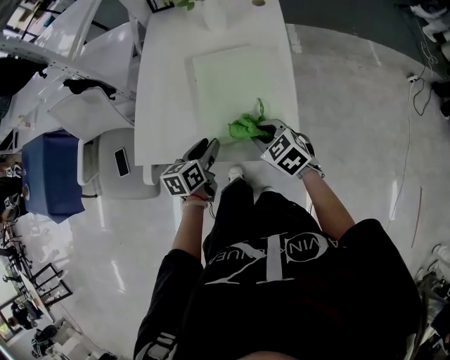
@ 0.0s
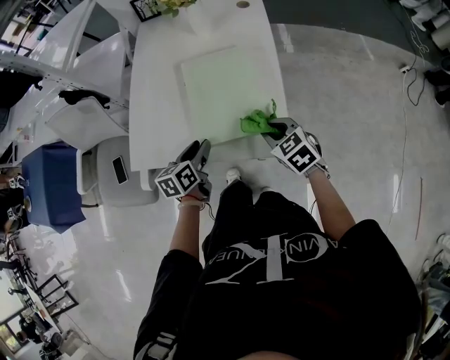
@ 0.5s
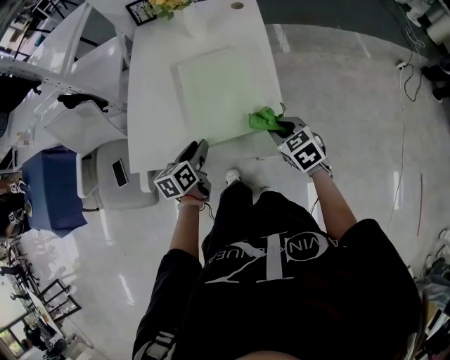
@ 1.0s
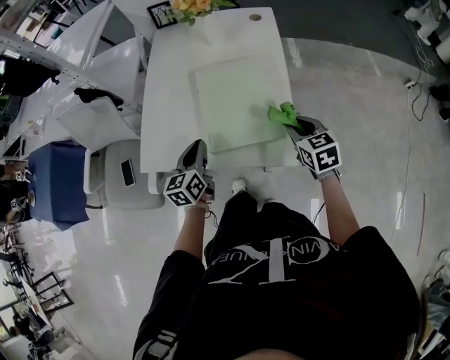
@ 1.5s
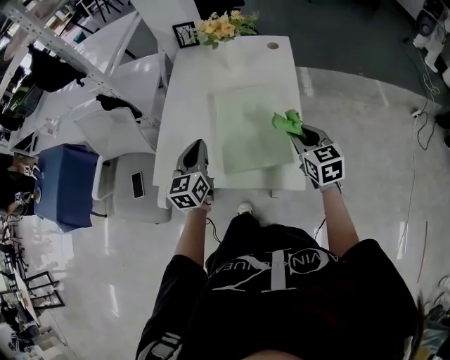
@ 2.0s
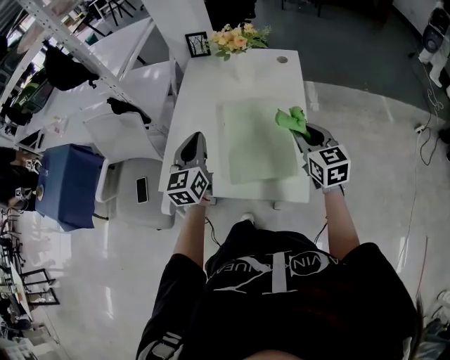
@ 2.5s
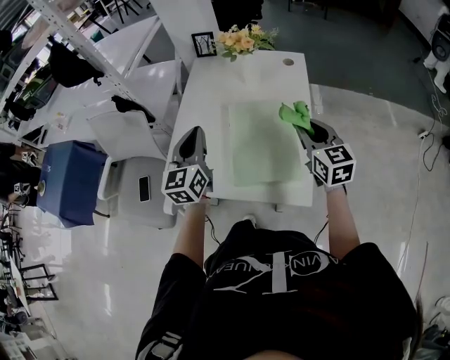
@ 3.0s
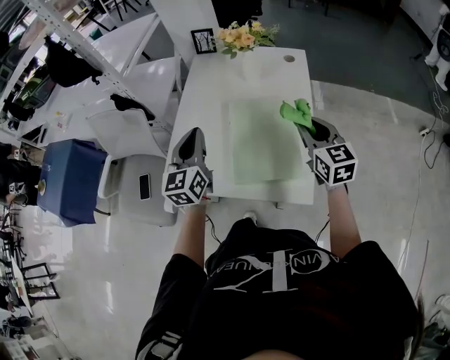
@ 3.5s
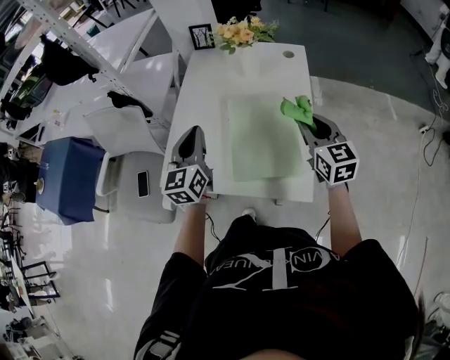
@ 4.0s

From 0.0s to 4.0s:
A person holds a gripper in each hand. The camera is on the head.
From 0.0s to 2.0s: The left gripper moves upward and forward, approximately 15 cm, rotates some 30 degrees, and closes its fingers. The right gripper is displaced to the right, upward and forward by approximately 15 cm, and swivels some 30 degrees.
From 2.0s to 4.0s: The grippers both shift upward by about 5 cm.

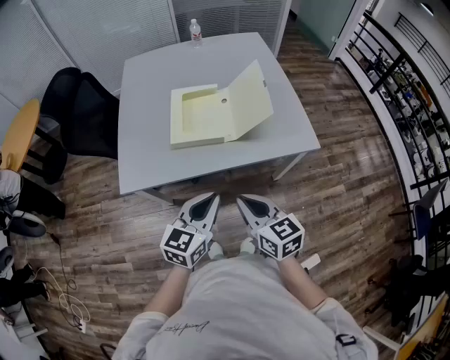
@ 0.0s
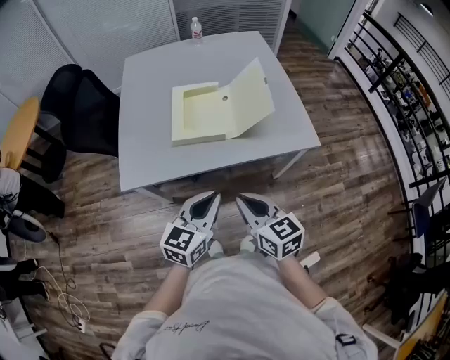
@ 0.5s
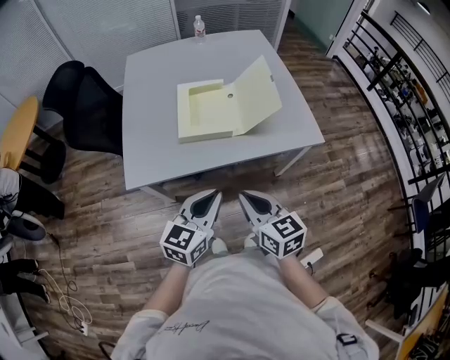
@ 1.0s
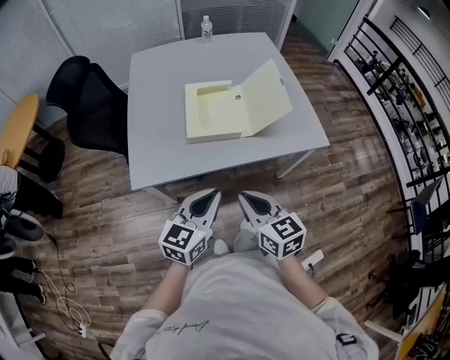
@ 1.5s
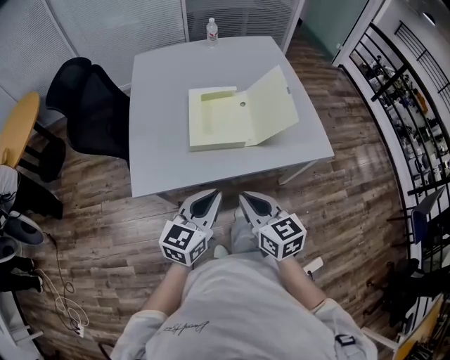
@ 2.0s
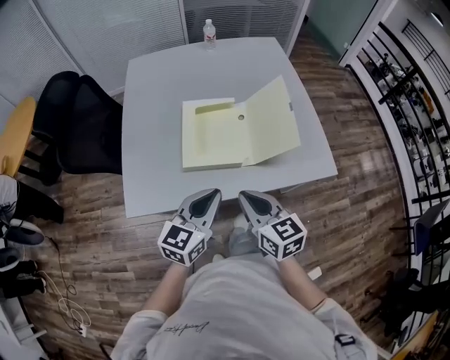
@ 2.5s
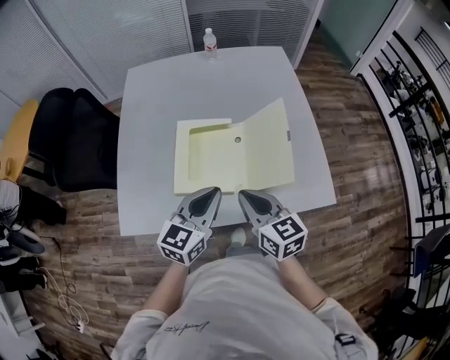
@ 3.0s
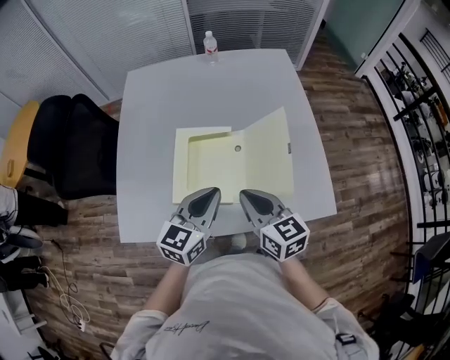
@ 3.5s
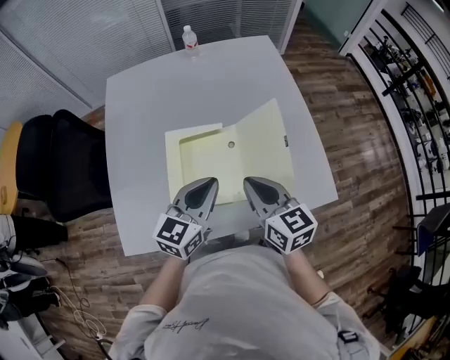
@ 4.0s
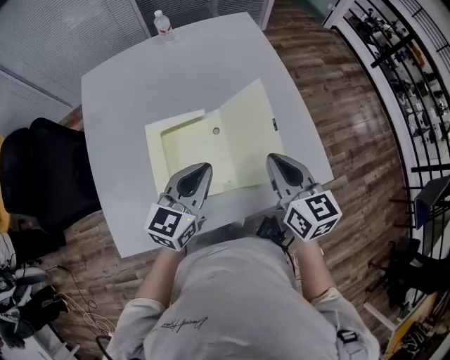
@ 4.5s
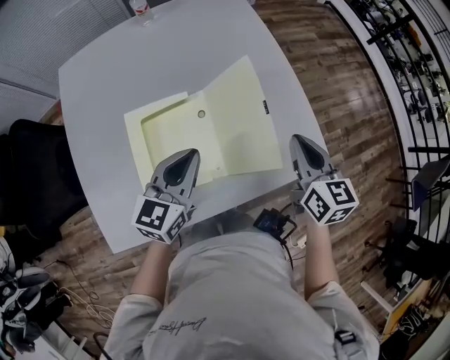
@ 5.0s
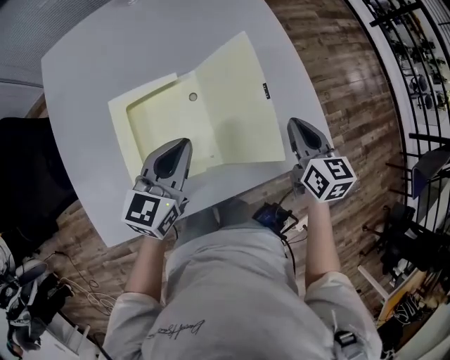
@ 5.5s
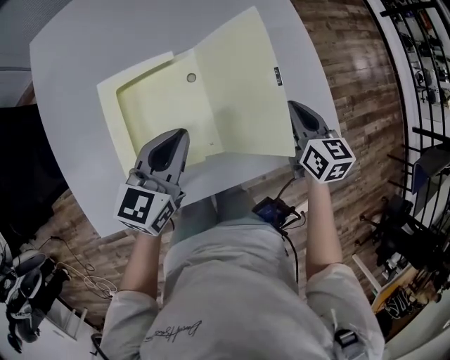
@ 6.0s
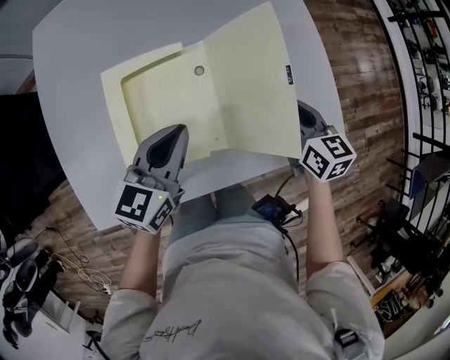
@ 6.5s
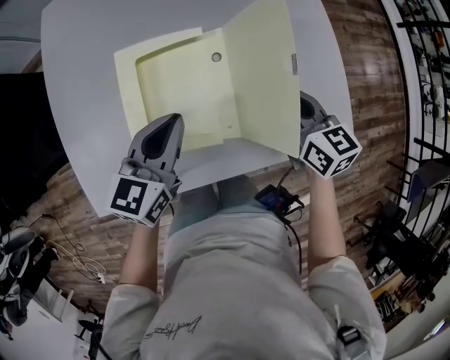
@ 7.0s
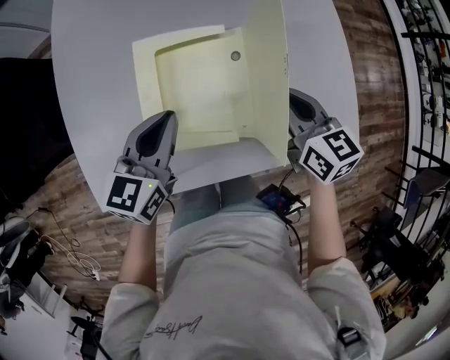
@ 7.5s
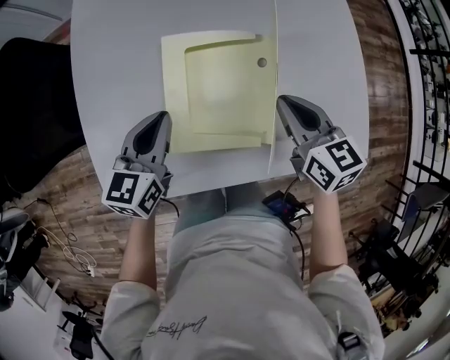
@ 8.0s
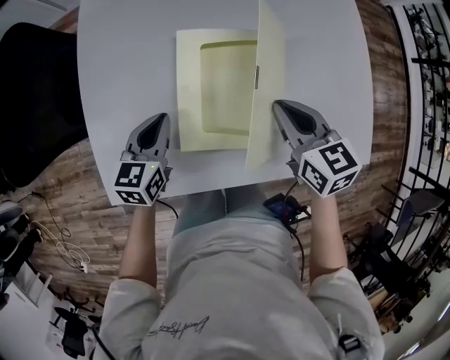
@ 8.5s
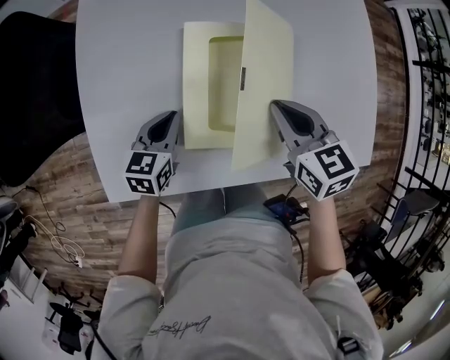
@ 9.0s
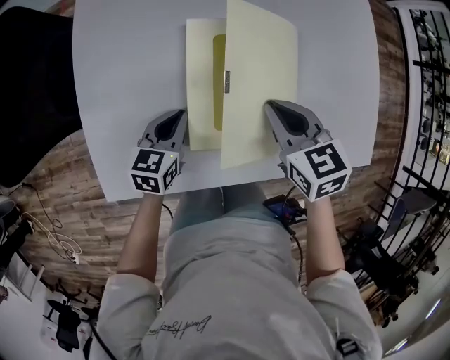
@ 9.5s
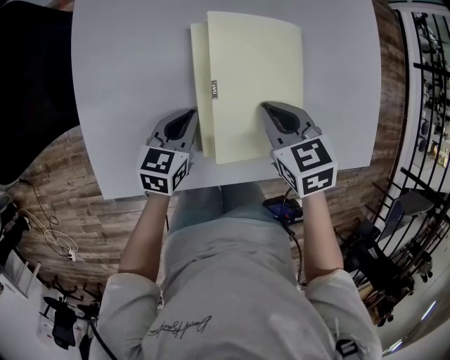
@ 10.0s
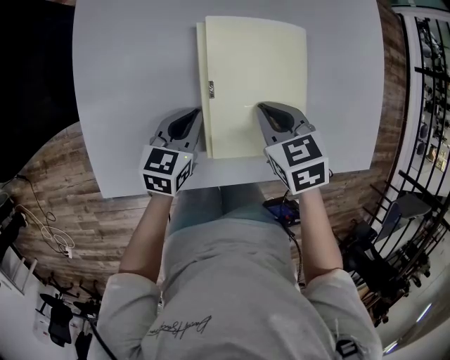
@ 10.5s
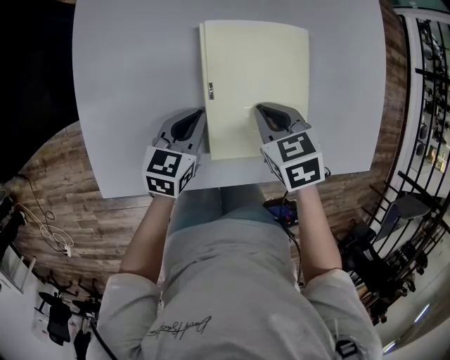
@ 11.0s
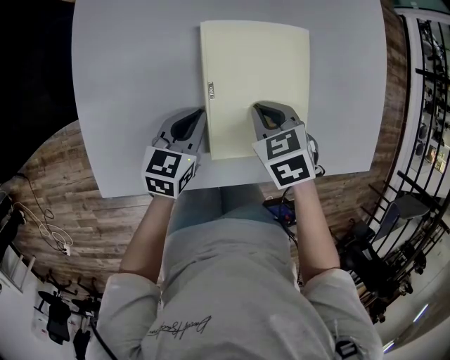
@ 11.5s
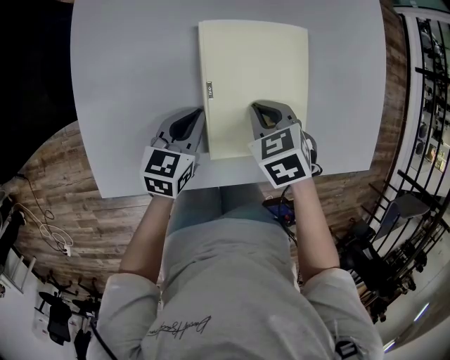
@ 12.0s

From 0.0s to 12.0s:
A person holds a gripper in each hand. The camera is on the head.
From 0.0s to 2.0s: The two grippers go approximately 10 cm to the left.
From 2.0s to 4.0s: Both grippers move forward, approximately 25 cm.
From 4.0s to 6.0s: The right gripper heads to the right, downward and forward, covering about 25 cm, and swivels some 20 degrees. The left gripper moves downward, roughly 10 cm.
From 6.0s to 8.0s: Both grippers move to the left, roughly 20 cm. The right gripper rotates about 20 degrees.
From 8.0s to 10.0s: The right gripper shifts about 10 cm to the left and downward, and swivels about 30 degrees. The left gripper goes some 15 cm downward.
From 10.0s to 12.0s: The grippers stay close to where they were, moving slightly.

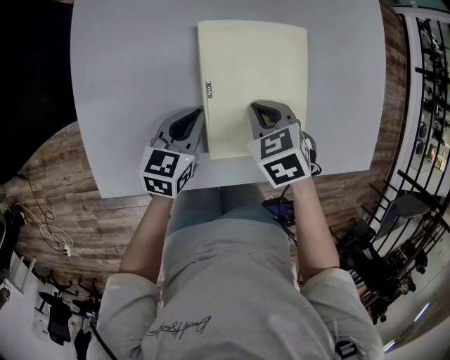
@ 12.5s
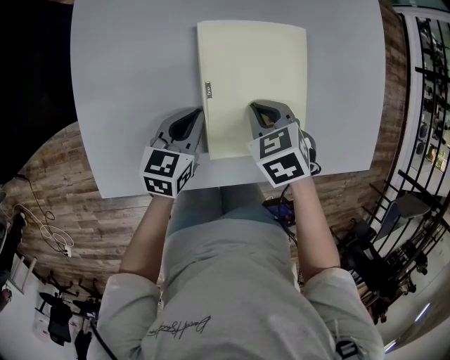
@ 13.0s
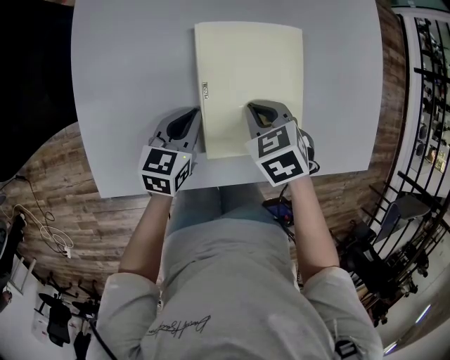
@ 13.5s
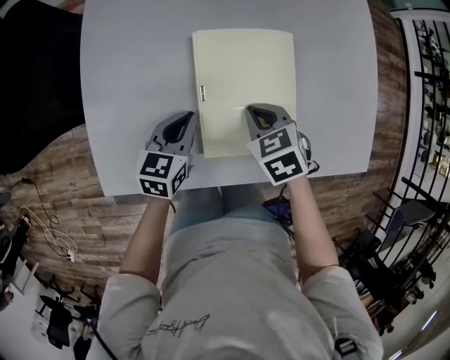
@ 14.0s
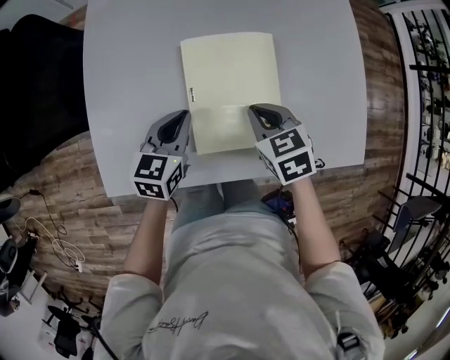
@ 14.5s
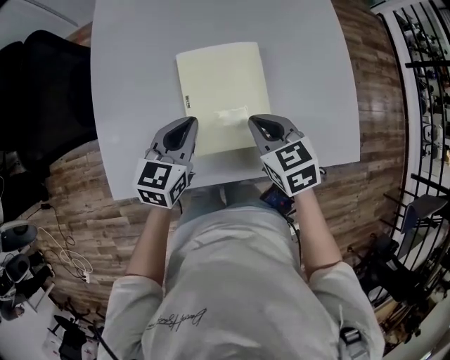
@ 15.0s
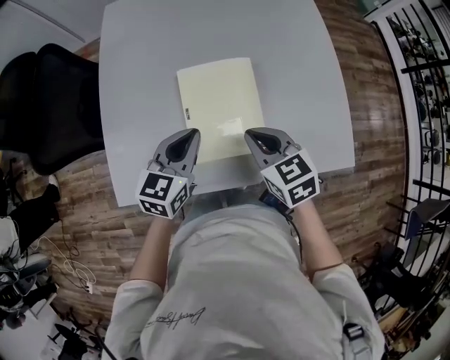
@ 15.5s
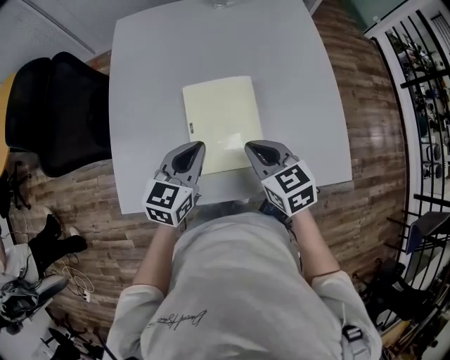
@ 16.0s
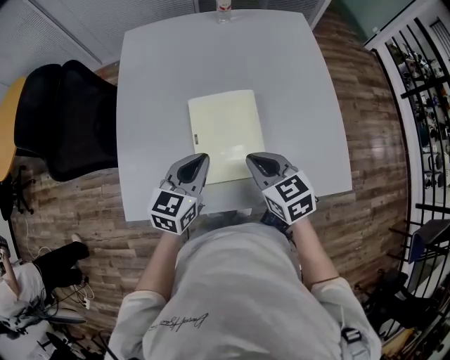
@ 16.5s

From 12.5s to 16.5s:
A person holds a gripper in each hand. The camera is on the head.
From 12.5s to 14.5s: The left gripper travels upward by some 5 cm.
From 14.5s to 16.5s: The right gripper travels upward by some 10 cm, while the left gripper is displaced upward and to the right by about 10 cm.

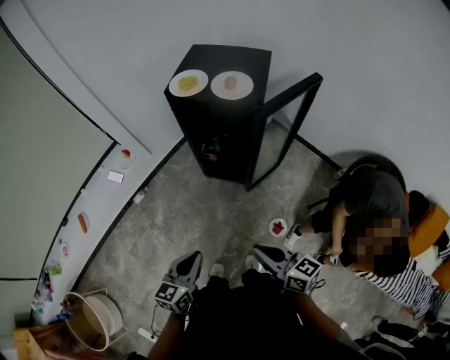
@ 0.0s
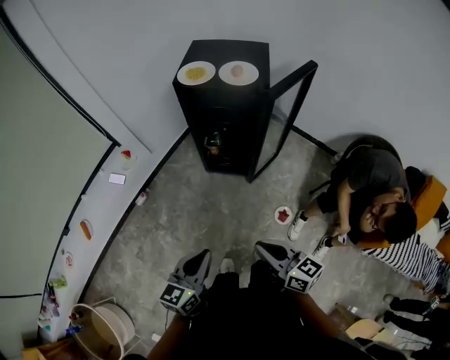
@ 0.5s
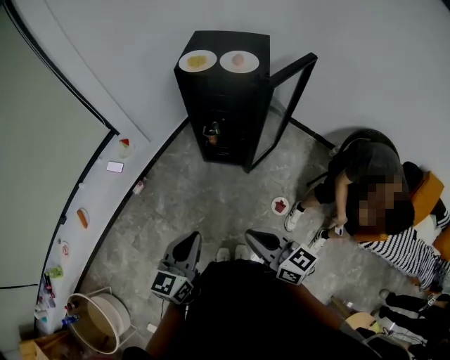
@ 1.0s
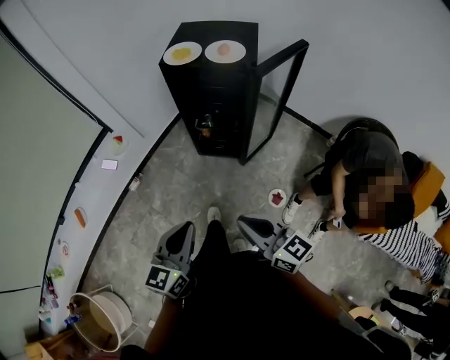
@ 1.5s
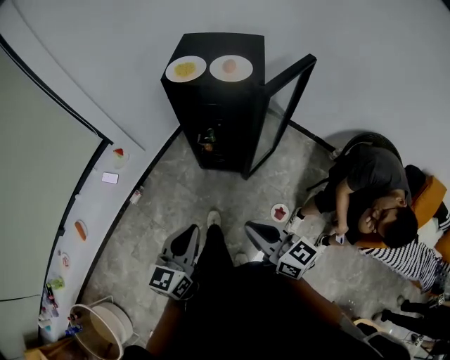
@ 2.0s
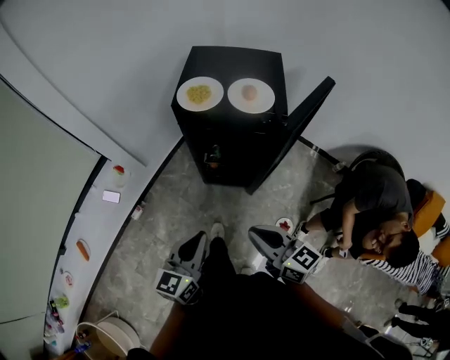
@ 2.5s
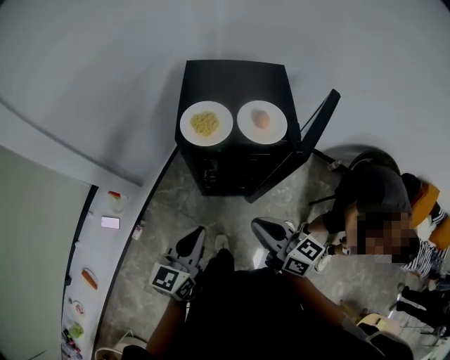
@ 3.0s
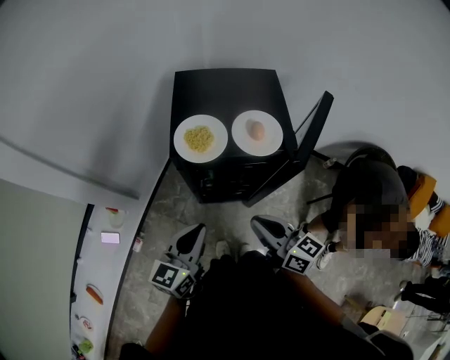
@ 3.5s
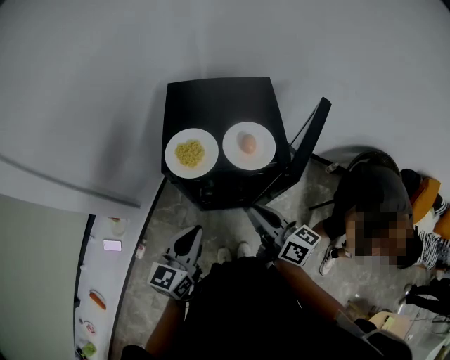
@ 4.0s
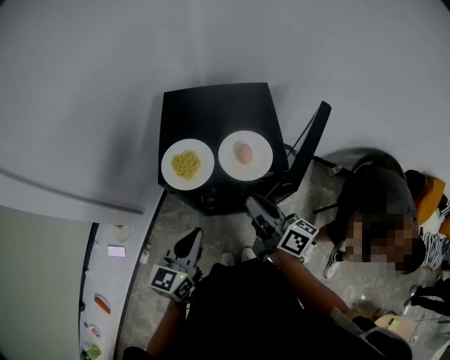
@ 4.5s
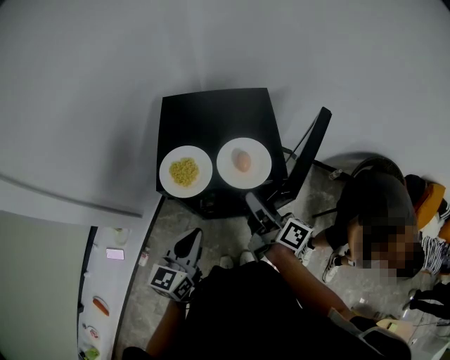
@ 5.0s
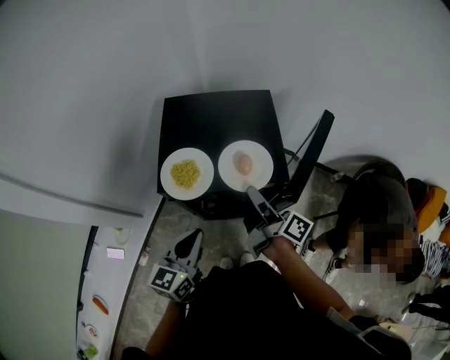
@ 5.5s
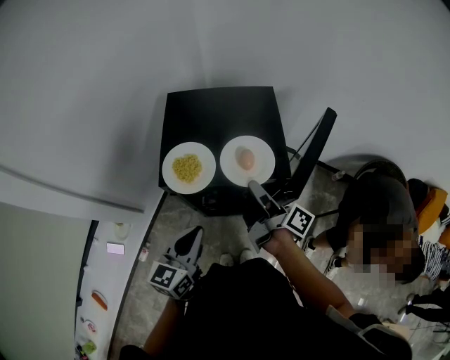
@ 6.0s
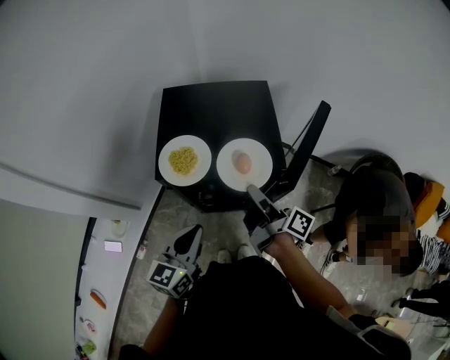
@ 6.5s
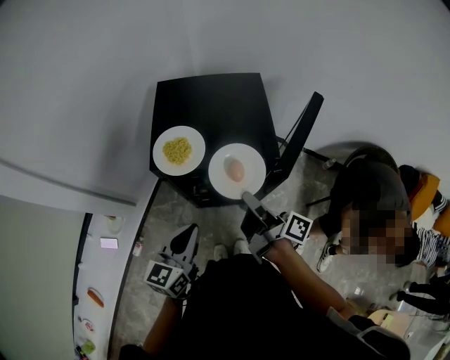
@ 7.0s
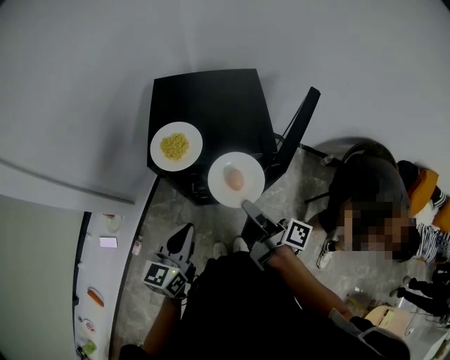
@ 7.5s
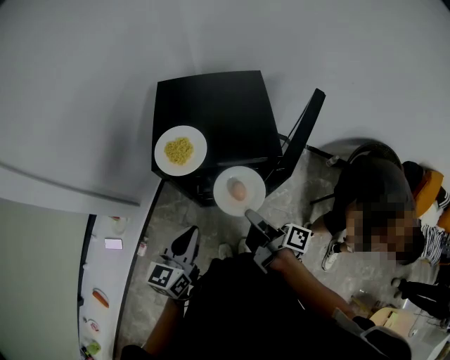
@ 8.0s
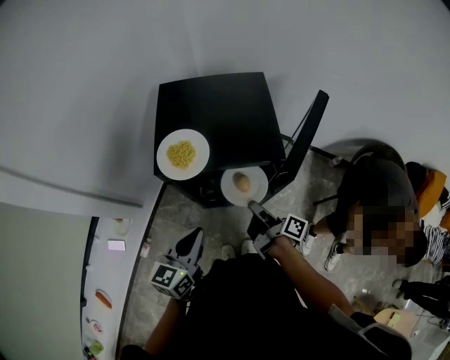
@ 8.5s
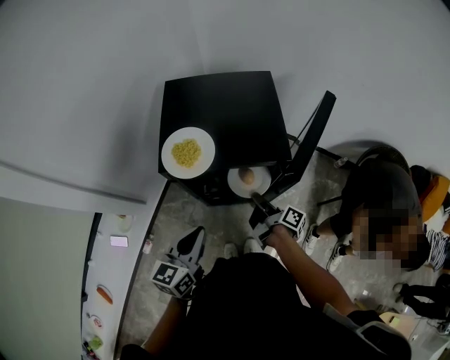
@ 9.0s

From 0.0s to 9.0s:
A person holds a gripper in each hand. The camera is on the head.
From 0.0s to 2.0s: The right gripper goes roughly 5 cm to the left. Meanwhile the left gripper travels upward by approximately 5 cm.
From 2.0s to 4.5s: Both grippers travel together forward, approximately 40 cm. The right gripper swivels about 40 degrees.
From 4.5s to 7.0s: The right gripper goes forward and returns, about 5 cm each way, and rotates some 30 degrees.
From 7.0s to 9.0s: The right gripper goes roughly 15 cm downward.
